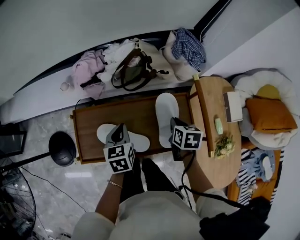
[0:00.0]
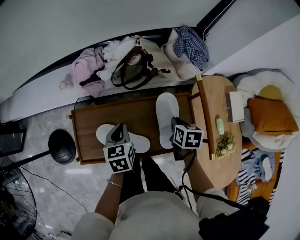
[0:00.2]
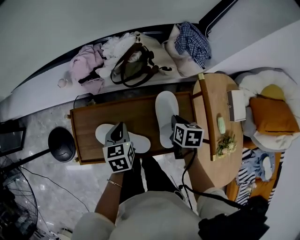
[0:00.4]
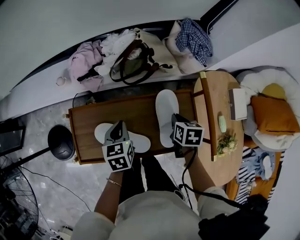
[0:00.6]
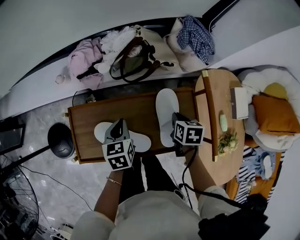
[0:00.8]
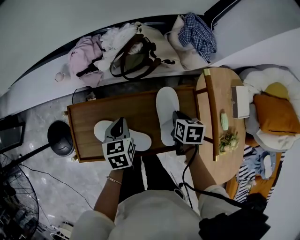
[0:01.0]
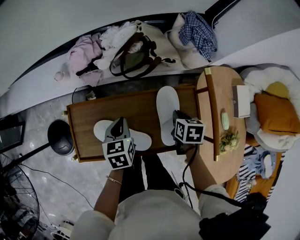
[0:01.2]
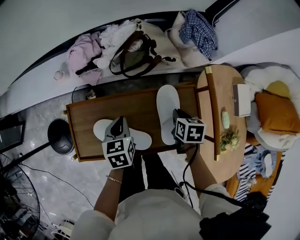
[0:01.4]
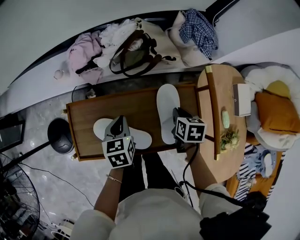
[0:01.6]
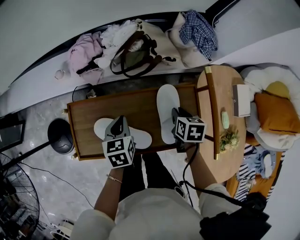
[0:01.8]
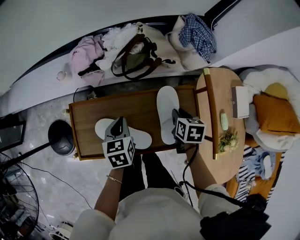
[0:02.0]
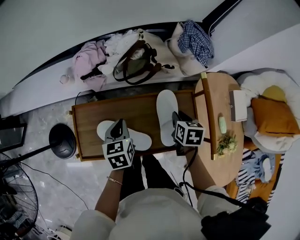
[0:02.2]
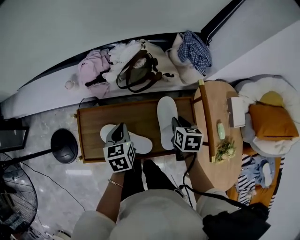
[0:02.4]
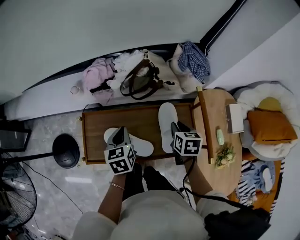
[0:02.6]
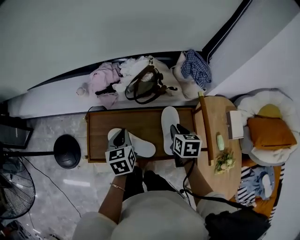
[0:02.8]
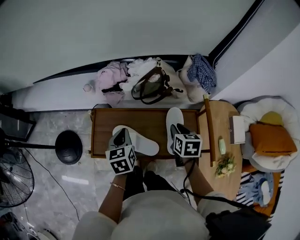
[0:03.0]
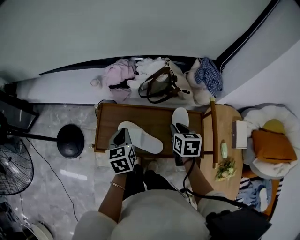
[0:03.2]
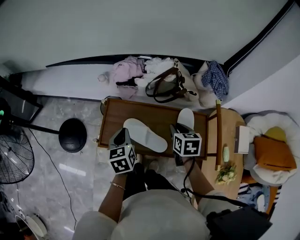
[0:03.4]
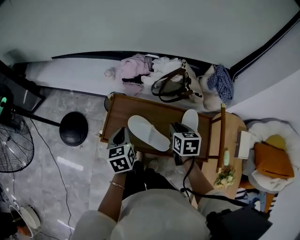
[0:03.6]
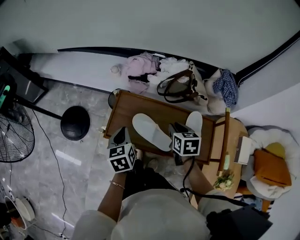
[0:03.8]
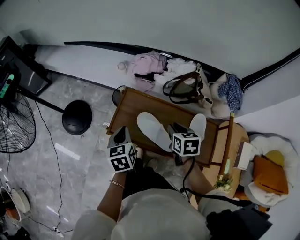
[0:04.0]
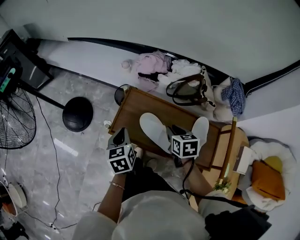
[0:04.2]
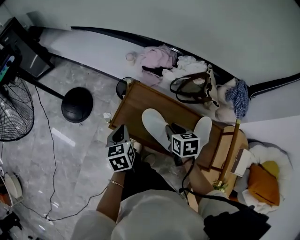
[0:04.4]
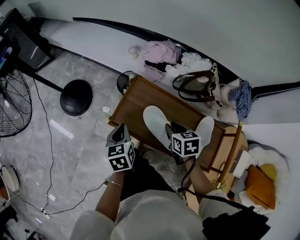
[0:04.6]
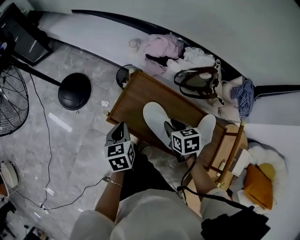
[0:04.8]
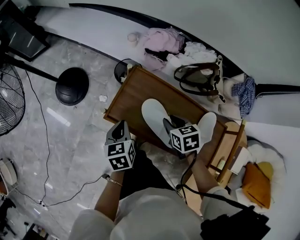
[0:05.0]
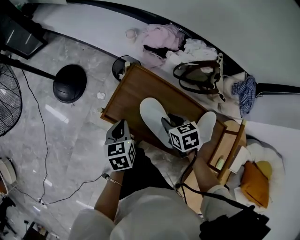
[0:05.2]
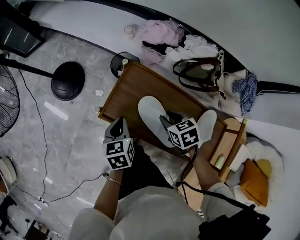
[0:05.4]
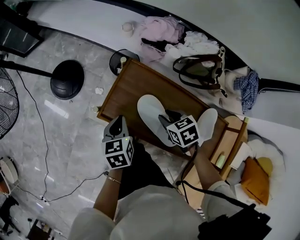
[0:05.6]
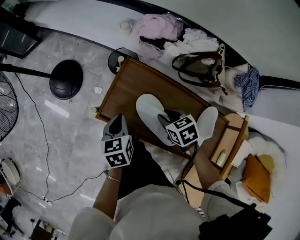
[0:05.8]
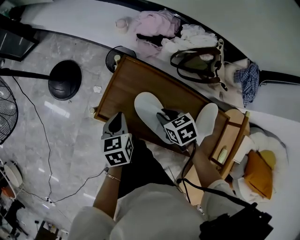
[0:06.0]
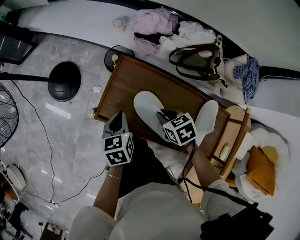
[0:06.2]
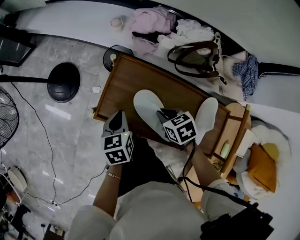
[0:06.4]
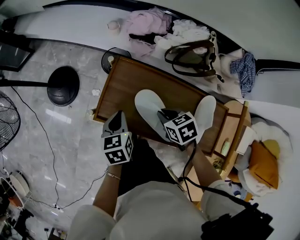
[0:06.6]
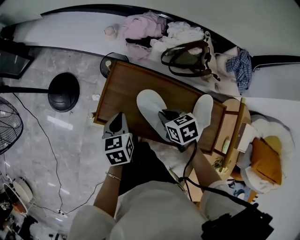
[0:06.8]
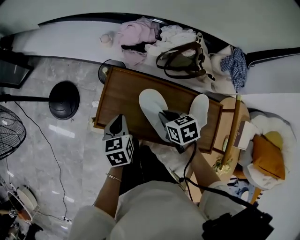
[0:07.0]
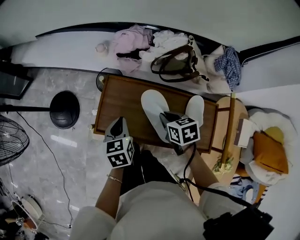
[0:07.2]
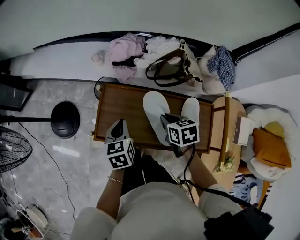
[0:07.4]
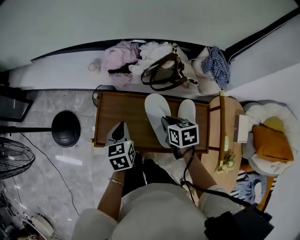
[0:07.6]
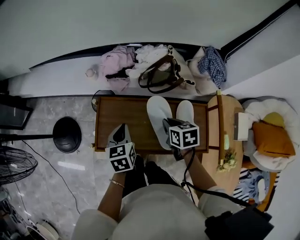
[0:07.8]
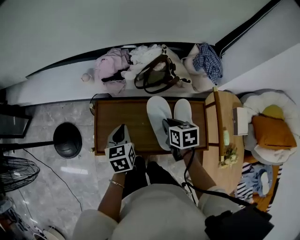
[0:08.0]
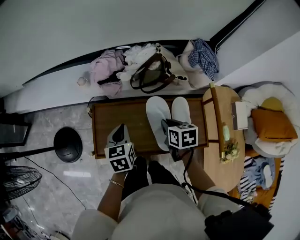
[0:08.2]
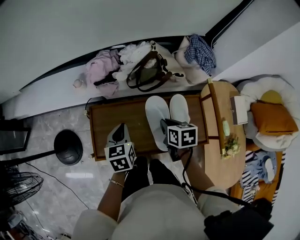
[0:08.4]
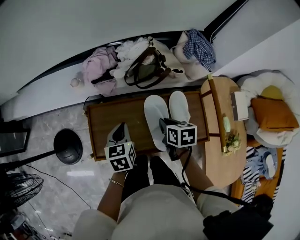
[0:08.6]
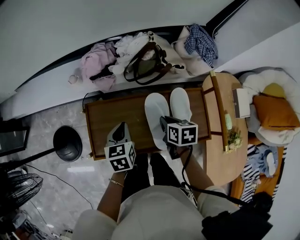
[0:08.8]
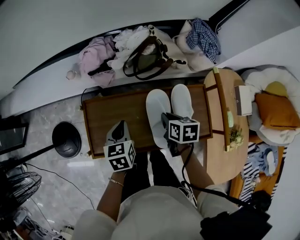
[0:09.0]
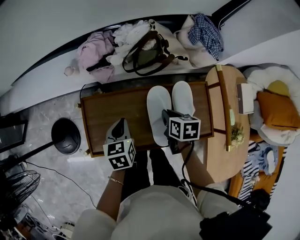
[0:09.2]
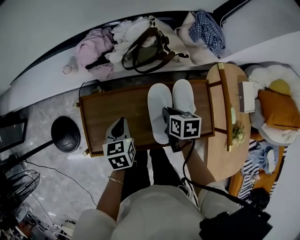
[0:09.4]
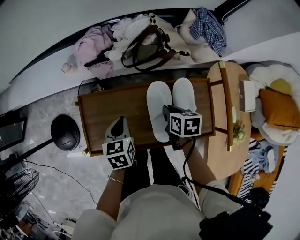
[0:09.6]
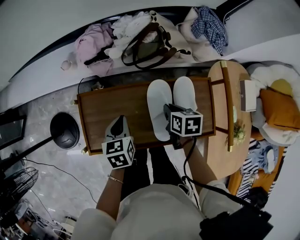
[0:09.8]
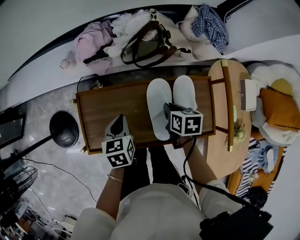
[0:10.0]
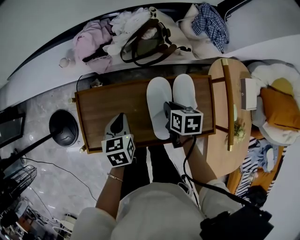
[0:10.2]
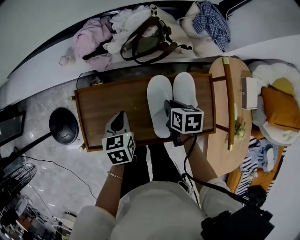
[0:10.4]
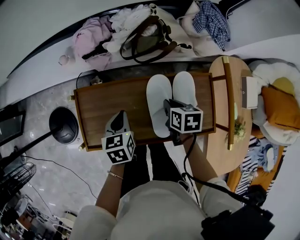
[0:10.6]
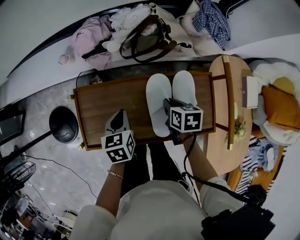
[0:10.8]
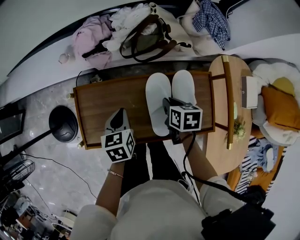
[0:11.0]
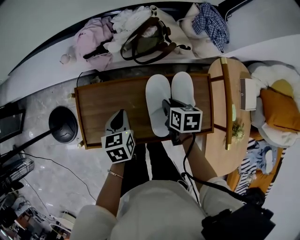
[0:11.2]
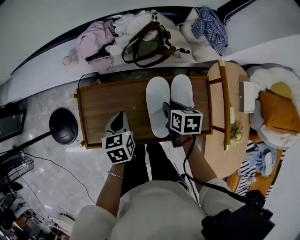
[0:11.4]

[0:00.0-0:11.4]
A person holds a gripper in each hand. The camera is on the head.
0.0 to 1.4 s: The right gripper travels downward by approximately 5 cm.
1.4 to 2.8 s: The grippers both shift upward by approximately 10 cm.
2.8 to 4.2 s: The right gripper changes place by about 20 cm, and turns by some 30 degrees. Meanwhile the left gripper ends up some 20 cm from where it was, and rotates about 30 degrees.
4.2 to 5.6 s: The grippers both shift downward by about 10 cm. The right gripper rotates approximately 30 degrees.
5.6 to 7.2 s: The left gripper moves to the right, approximately 5 cm. The right gripper moves approximately 5 cm, turns by approximately 30 degrees, and closes up.
7.2 to 8.6 s: The grippers both shift to the right by about 10 cm. The right gripper changes its angle by roughly 30 degrees. The left gripper swivels about 20 degrees.
8.6 to 10.0 s: Both grippers travel together downward, approximately 5 cm.
10.0 to 11.4 s: The two grippers keep their place.

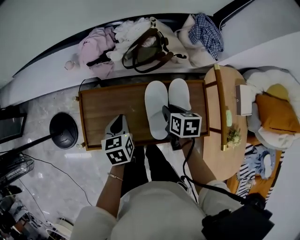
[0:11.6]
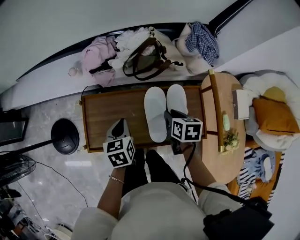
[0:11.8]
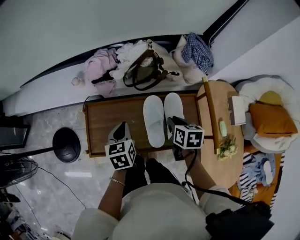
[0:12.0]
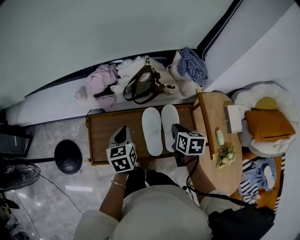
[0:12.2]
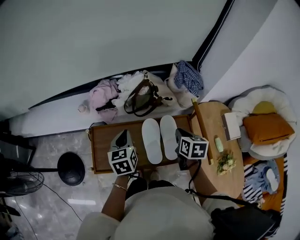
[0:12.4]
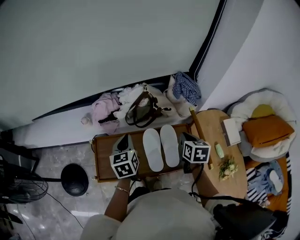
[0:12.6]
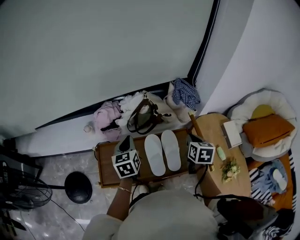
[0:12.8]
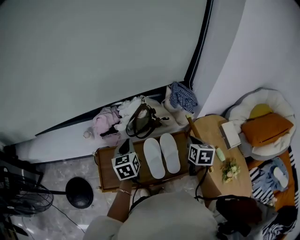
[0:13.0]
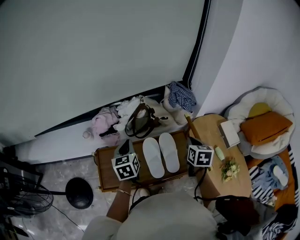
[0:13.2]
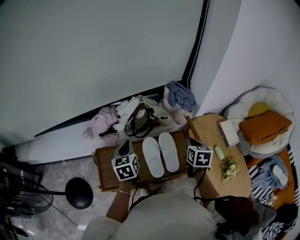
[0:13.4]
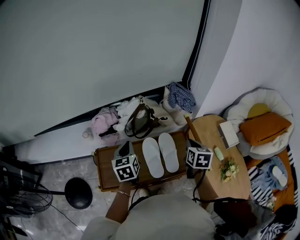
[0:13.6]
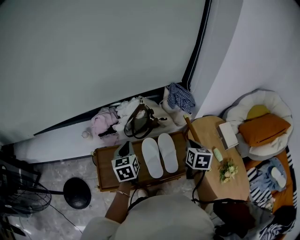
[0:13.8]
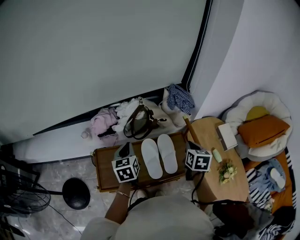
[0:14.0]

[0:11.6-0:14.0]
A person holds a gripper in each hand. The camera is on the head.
11.6 to 12.8 s: The left gripper travels upward and forward by roughly 15 cm, and changes its angle by some 20 degrees; the right gripper is displaced upward and to the right by roughly 20 cm, and rotates about 30 degrees.
12.8 to 14.0 s: The grippers make only small movements.

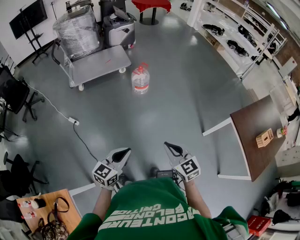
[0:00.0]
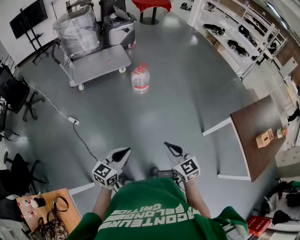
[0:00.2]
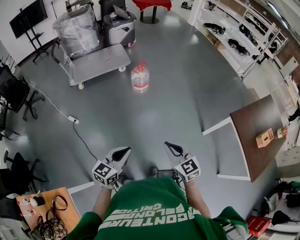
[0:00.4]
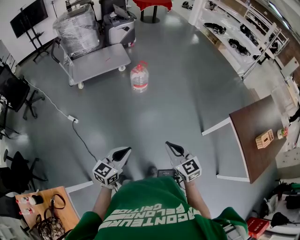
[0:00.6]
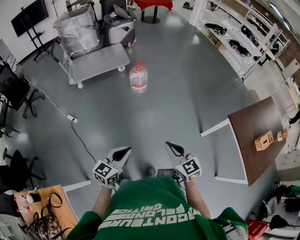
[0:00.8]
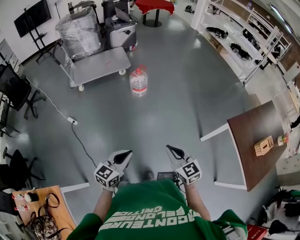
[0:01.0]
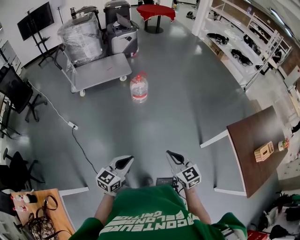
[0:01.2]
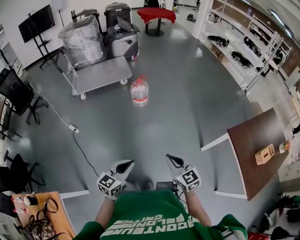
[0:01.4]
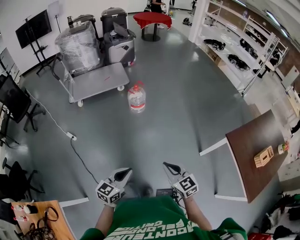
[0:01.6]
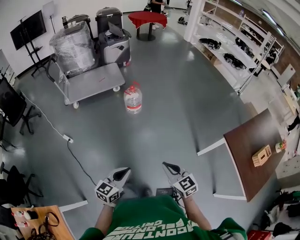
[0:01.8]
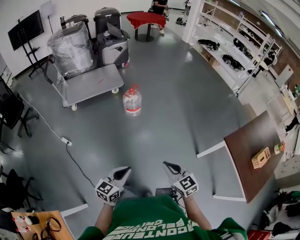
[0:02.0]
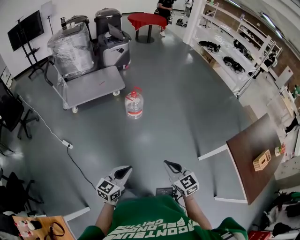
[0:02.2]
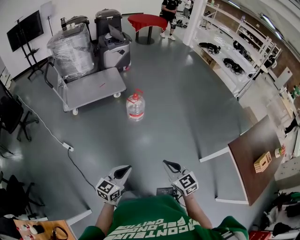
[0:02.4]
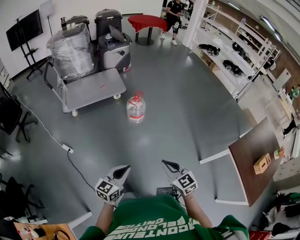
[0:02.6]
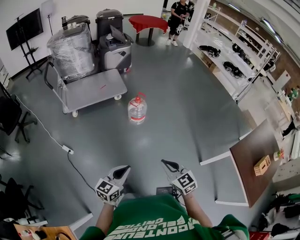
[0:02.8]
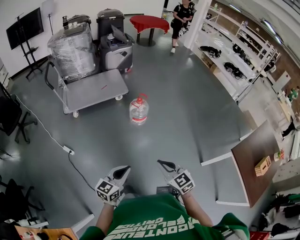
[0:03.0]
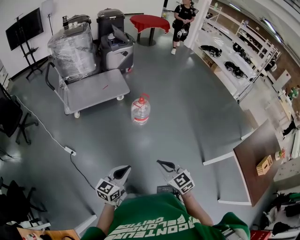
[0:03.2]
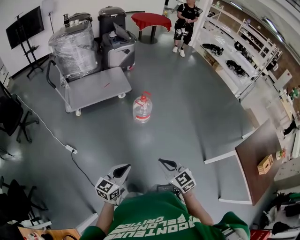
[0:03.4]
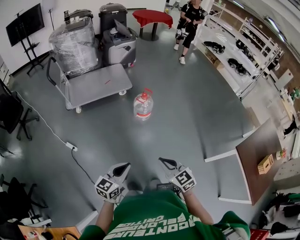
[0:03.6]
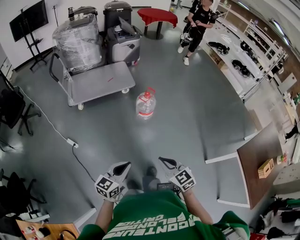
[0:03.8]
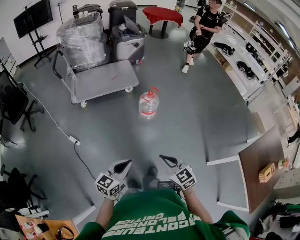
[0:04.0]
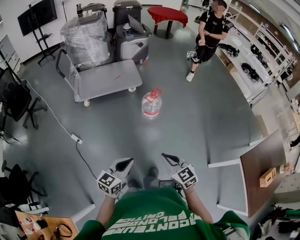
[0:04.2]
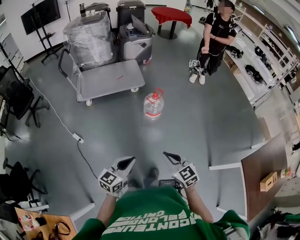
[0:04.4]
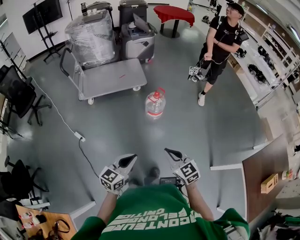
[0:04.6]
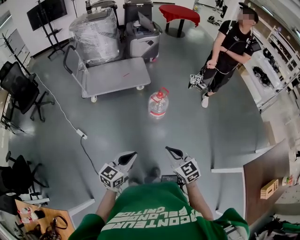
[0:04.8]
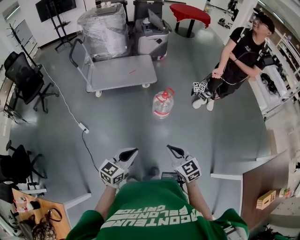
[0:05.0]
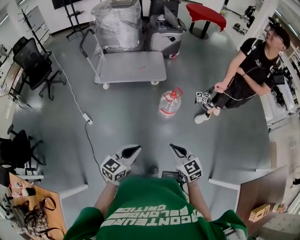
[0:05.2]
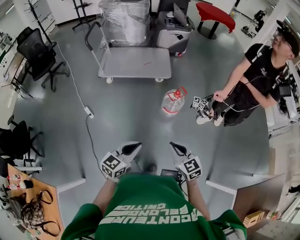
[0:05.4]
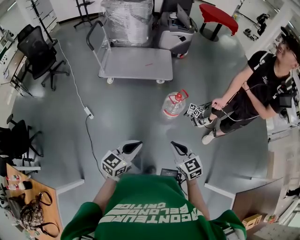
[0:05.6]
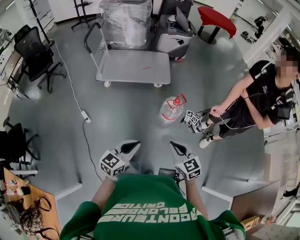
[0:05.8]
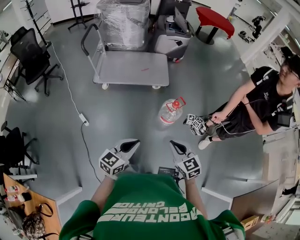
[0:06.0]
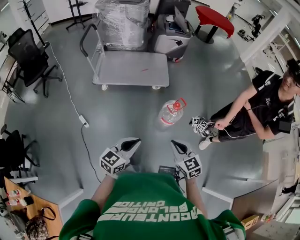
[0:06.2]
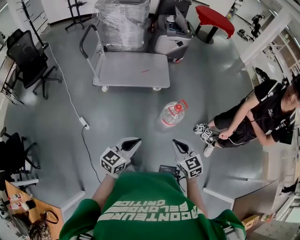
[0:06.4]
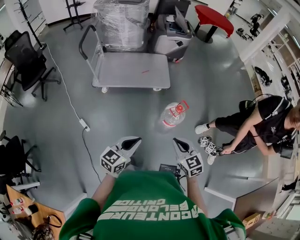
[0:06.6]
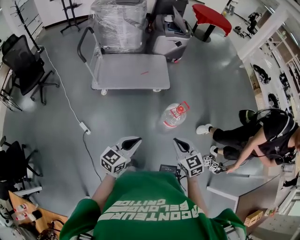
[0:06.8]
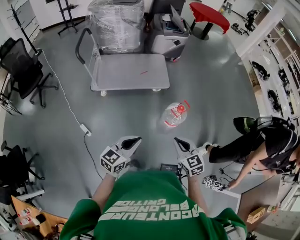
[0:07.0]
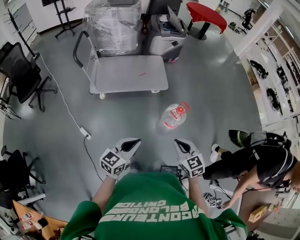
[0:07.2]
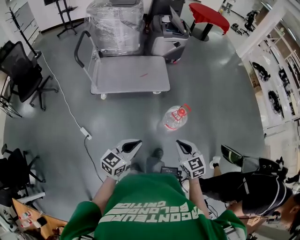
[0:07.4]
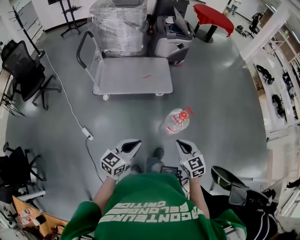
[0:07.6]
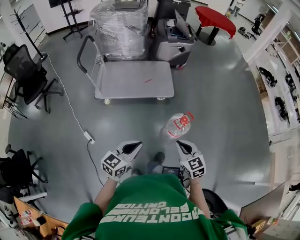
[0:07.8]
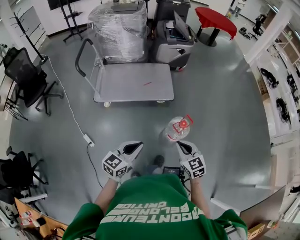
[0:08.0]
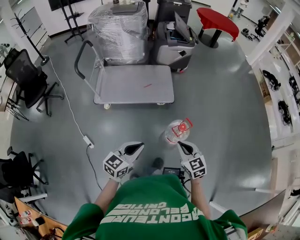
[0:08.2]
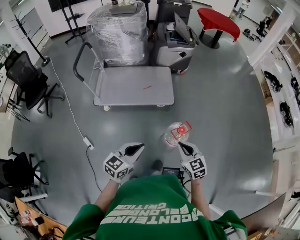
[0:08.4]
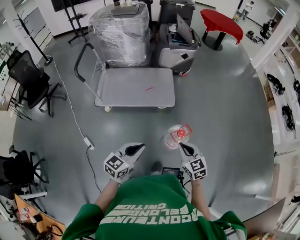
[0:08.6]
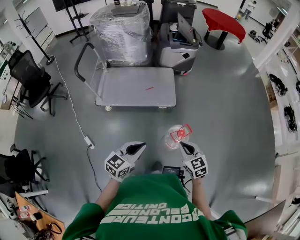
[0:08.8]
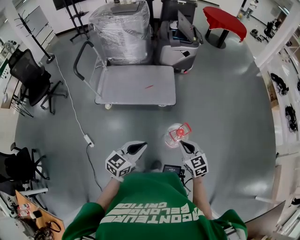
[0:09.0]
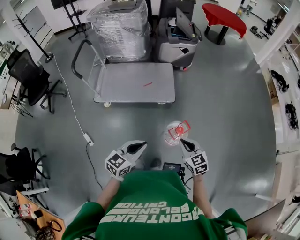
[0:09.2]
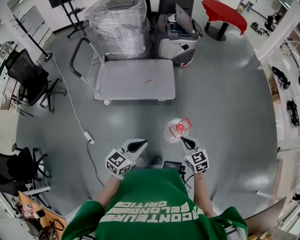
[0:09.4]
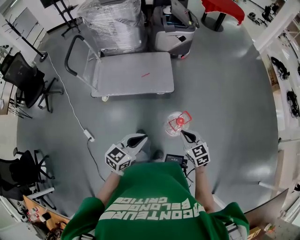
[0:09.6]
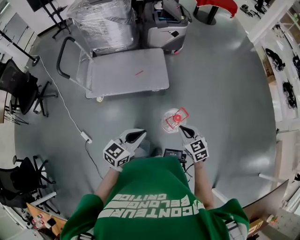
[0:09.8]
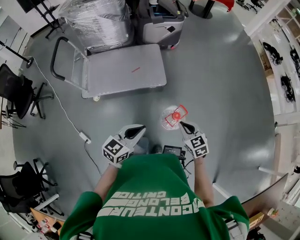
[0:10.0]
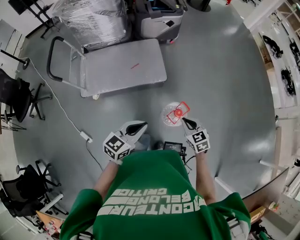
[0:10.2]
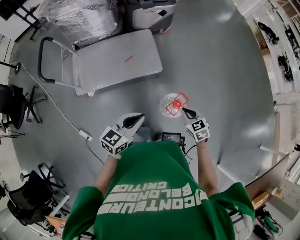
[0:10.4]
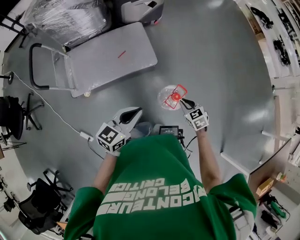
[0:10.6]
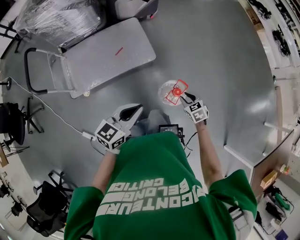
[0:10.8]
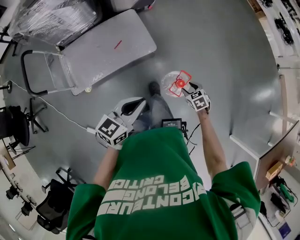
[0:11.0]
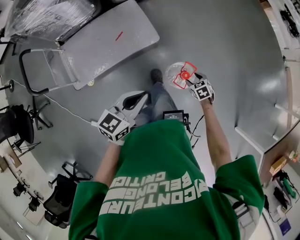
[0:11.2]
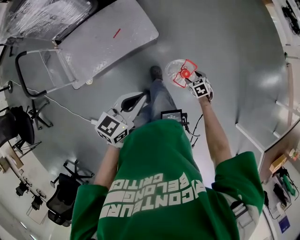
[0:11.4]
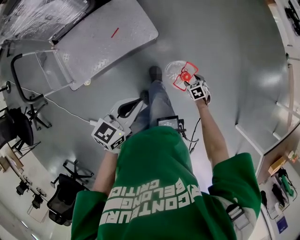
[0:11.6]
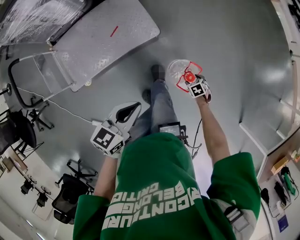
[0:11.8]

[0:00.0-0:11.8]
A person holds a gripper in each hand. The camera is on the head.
0.0 to 1.4 s: Both grippers move to the right, roughly 10 cm.
1.4 to 3.0 s: The right gripper moves to the left and forward, some 25 cm. The left gripper goes about 25 cm forward and to the left.
3.0 to 4.4 s: The two grippers go about 5 cm forward.
4.4 to 6.0 s: Both grippers move forward, some 20 cm.
6.0 to 7.4 s: The two grippers go approximately 15 cm forward and to the left.
7.4 to 8.8 s: The grippers both shift forward and to the right by some 20 cm.
8.8 to 10.4 s: The left gripper goes approximately 15 cm forward; the right gripper travels forward and downward by about 15 cm, and rotates approximately 20 degrees.
10.4 to 11.8 s: The right gripper goes about 35 cm downward, tilts its fingers about 30 degrees downward, and opens; the left gripper shifts by some 15 cm.
